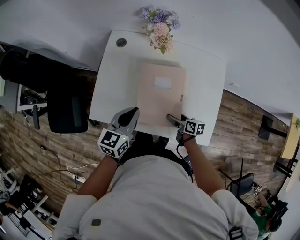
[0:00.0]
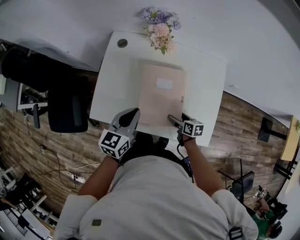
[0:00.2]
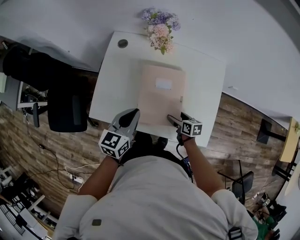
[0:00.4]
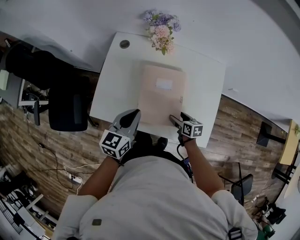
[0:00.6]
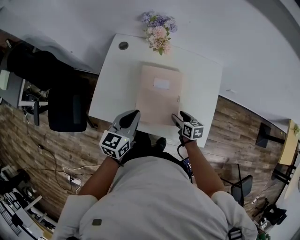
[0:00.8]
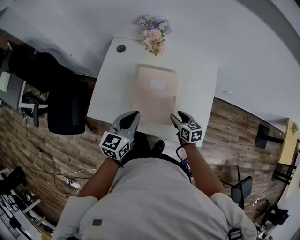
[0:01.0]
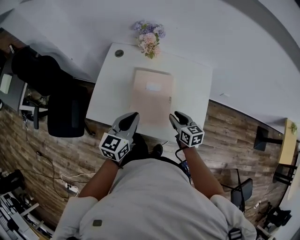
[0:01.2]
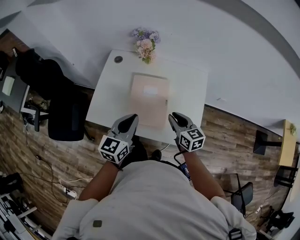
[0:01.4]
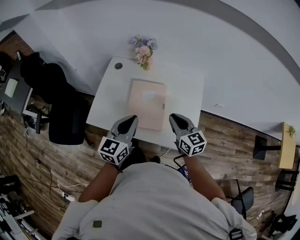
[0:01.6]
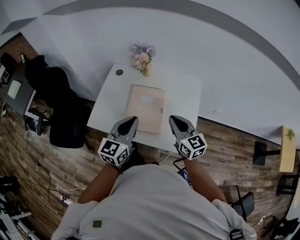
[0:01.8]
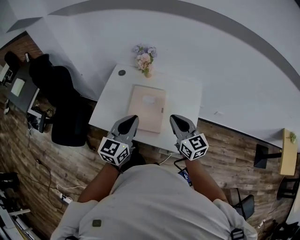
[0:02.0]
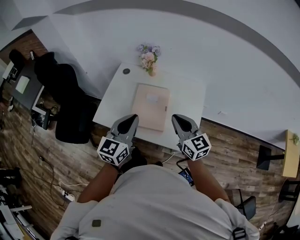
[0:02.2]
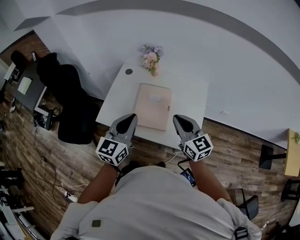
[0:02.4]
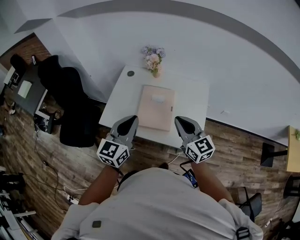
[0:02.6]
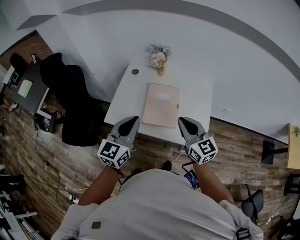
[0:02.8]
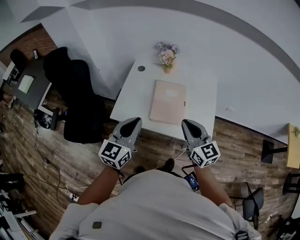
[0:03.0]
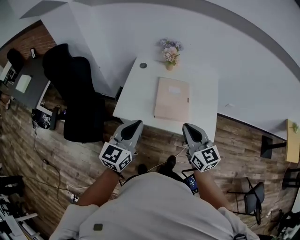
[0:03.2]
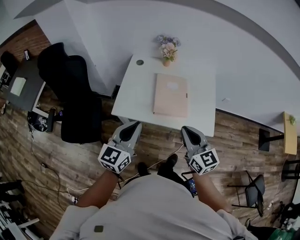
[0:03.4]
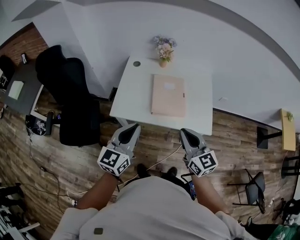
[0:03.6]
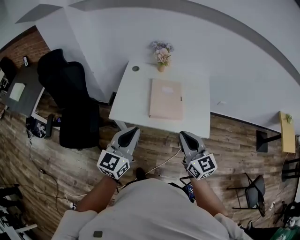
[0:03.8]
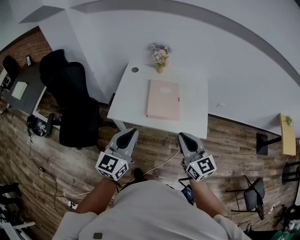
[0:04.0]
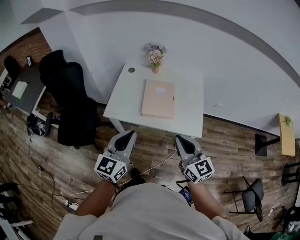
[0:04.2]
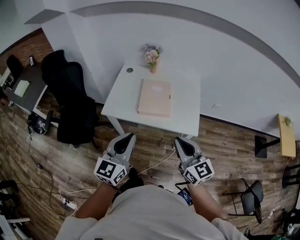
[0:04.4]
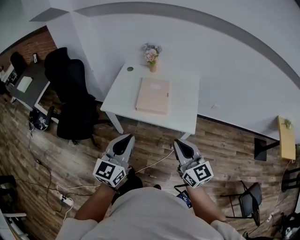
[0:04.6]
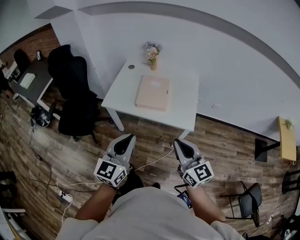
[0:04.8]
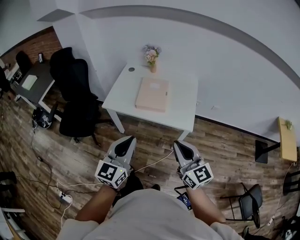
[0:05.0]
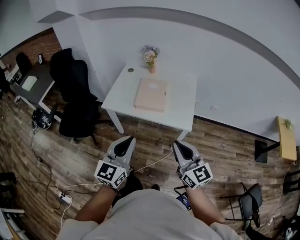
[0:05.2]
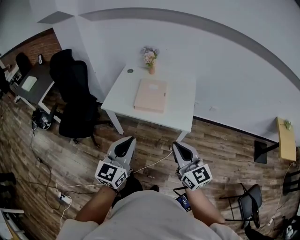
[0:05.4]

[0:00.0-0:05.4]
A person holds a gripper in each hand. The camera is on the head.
0:00.0 to 0:01.4: The left gripper heads upward, backward and to the right, covering approximately 15 cm. Meanwhile the right gripper shifts roughly 20 cm upward, turns by approximately 40 degrees, and closes.
0:01.4 to 0:02.8: The left gripper shifts approximately 15 cm upward, backward and to the left, while the right gripper moves upward and backward, approximately 20 cm, and rotates about 20 degrees.
0:02.8 to 0:04.0: Both grippers travel together backward and to the left, about 15 cm.
0:04.0 to 0:05.4: The two grippers go some 25 cm backward and to the right.

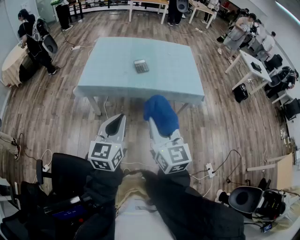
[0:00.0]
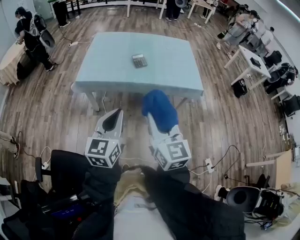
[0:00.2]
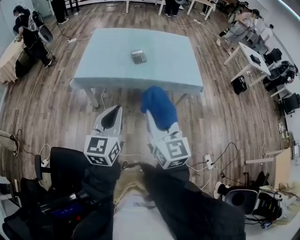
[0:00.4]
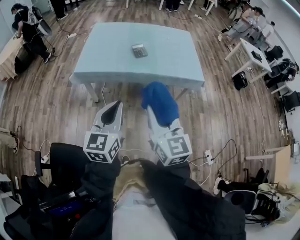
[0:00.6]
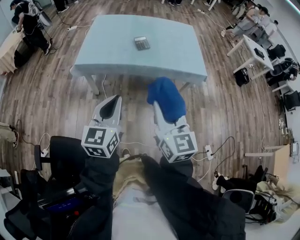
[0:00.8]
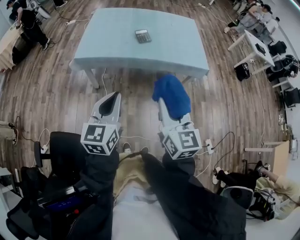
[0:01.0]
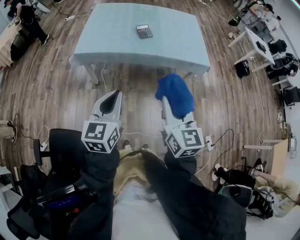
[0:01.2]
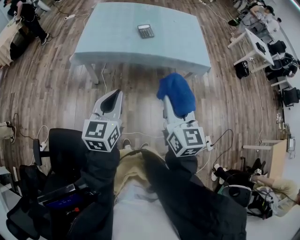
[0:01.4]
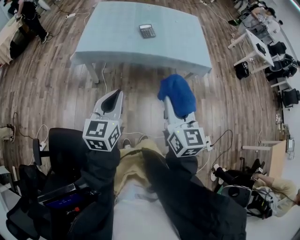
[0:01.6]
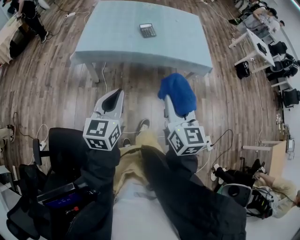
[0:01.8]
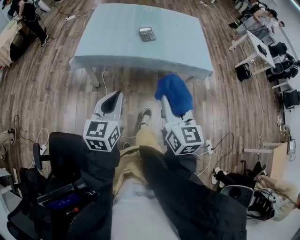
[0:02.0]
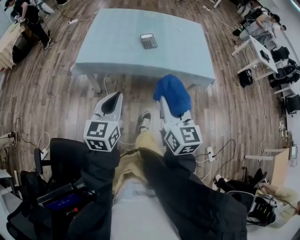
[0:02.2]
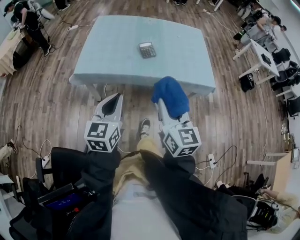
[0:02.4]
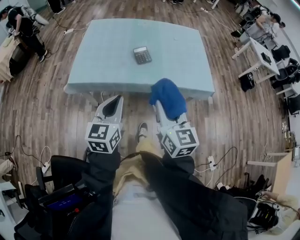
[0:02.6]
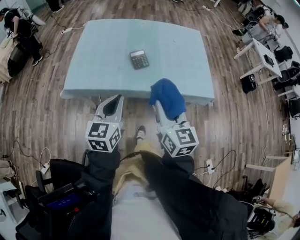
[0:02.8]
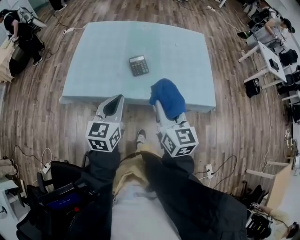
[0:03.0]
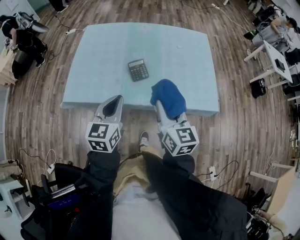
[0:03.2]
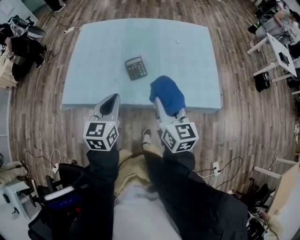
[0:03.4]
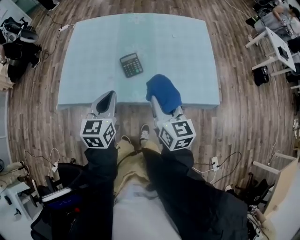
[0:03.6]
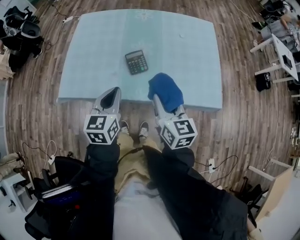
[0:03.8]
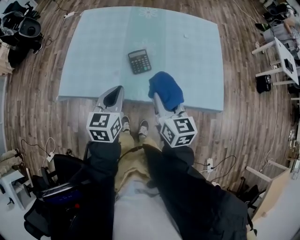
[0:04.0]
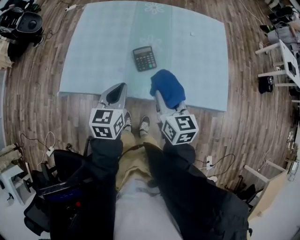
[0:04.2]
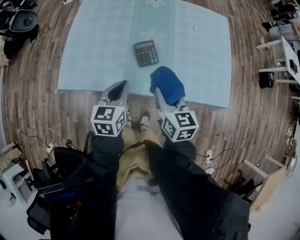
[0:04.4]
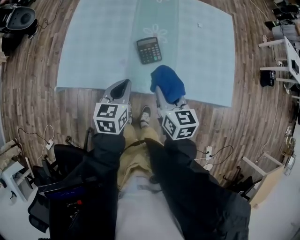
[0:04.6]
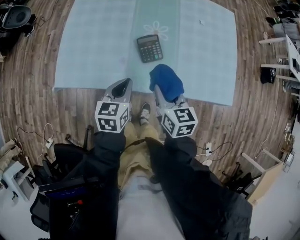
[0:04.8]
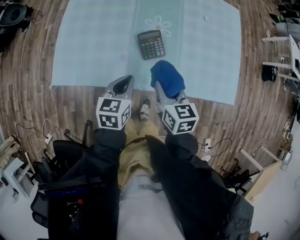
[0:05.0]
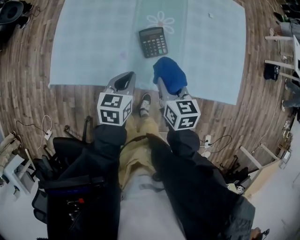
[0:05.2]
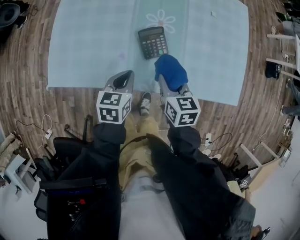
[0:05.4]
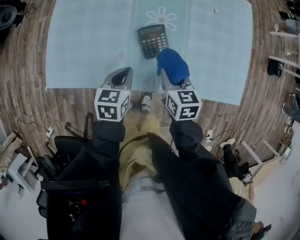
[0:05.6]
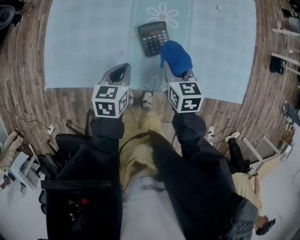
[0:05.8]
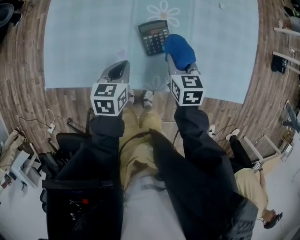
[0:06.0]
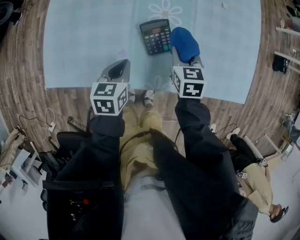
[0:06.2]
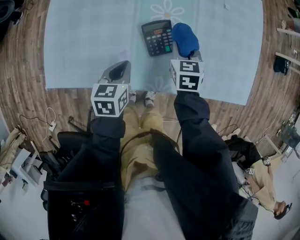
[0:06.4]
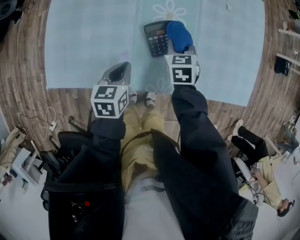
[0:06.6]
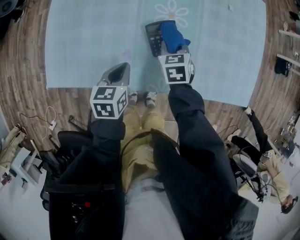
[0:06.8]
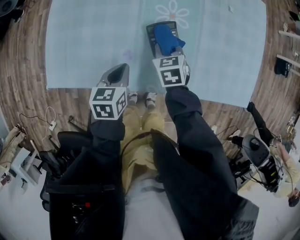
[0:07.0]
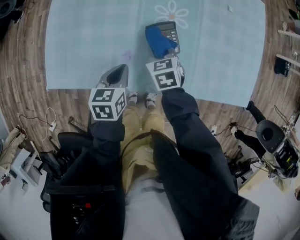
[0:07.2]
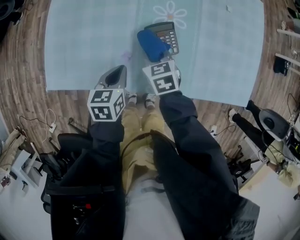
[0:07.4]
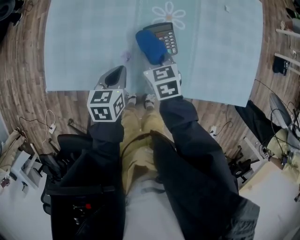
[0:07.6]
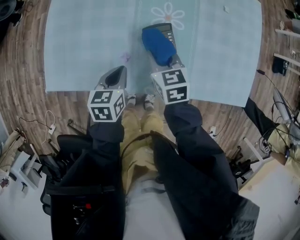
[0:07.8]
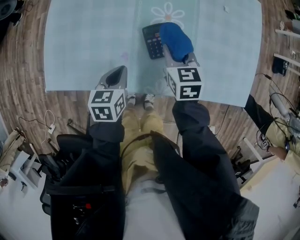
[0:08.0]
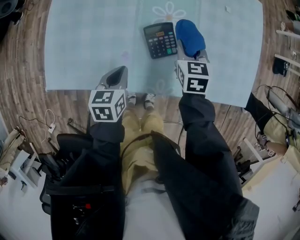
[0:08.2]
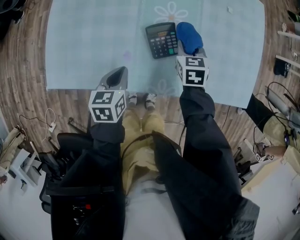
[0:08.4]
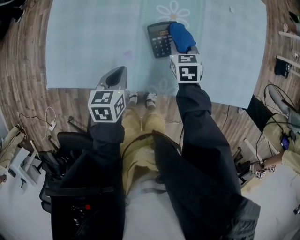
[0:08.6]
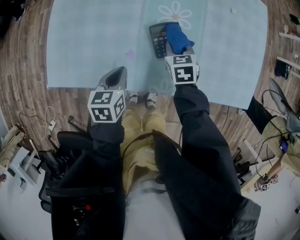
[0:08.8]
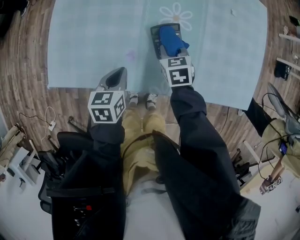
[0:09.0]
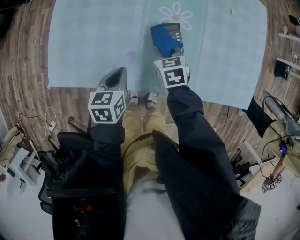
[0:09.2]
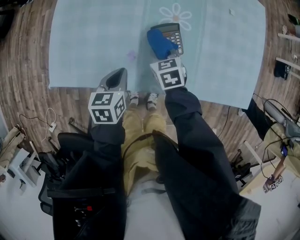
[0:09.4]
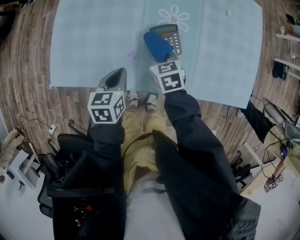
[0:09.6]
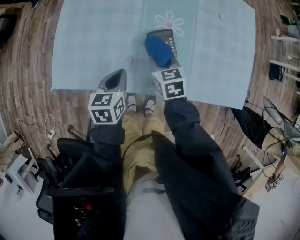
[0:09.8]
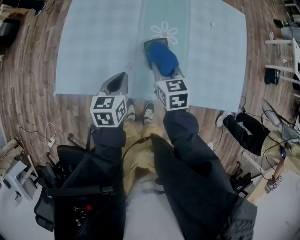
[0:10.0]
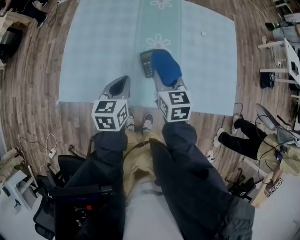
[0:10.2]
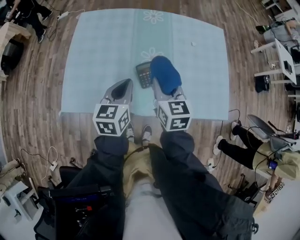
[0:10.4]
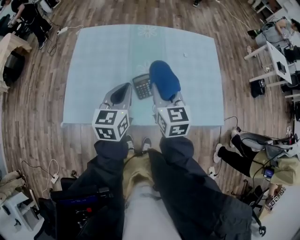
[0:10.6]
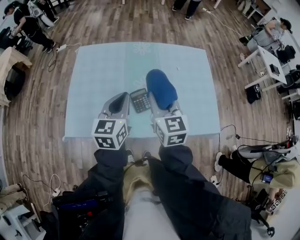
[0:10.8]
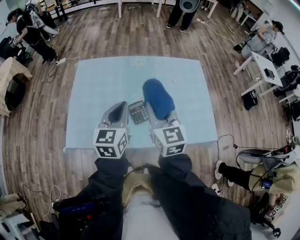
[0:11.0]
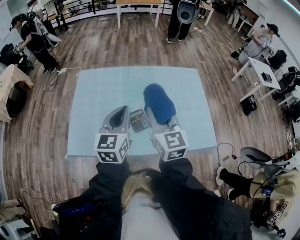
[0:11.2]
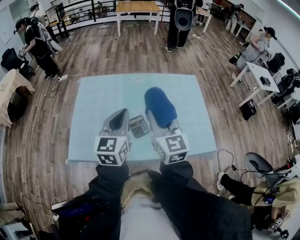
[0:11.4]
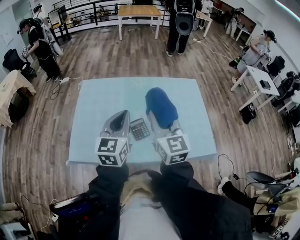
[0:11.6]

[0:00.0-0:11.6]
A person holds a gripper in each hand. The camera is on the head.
0:00.0 to 0:01.4: The left gripper moves to the left, approximately 5 cm.
0:01.4 to 0:02.8: The two grippers go some 30 cm forward.
0:02.8 to 0:04.4: Both grippers travel together forward and downward, approximately 25 cm.
0:04.4 to 0:05.8: The grippers both shift downward and forward by roughly 20 cm.
0:05.8 to 0:07.2: The right gripper shifts approximately 10 cm to the left and downward.
0:07.2 to 0:08.8: The right gripper is displaced to the right by approximately 5 cm.
0:08.8 to 0:10.2: The two grippers go approximately 15 cm upward. The right gripper turns by some 20 degrees.
0:10.2 to 0:11.6: Both grippers travel together upward, roughly 25 cm. The left gripper changes its angle by approximately 30 degrees; the right gripper tilts its fingers roughly 30 degrees upward.

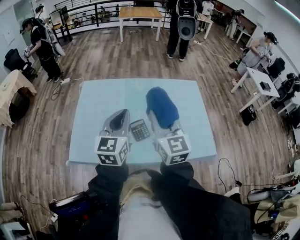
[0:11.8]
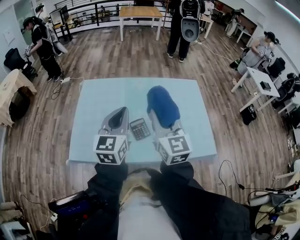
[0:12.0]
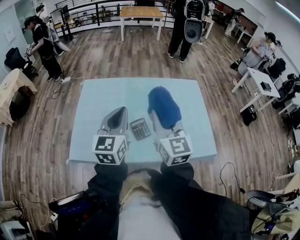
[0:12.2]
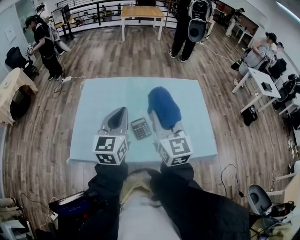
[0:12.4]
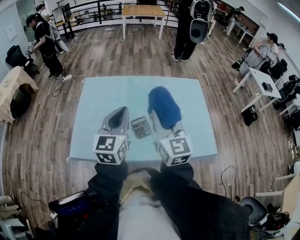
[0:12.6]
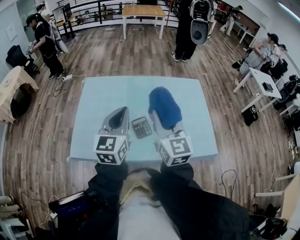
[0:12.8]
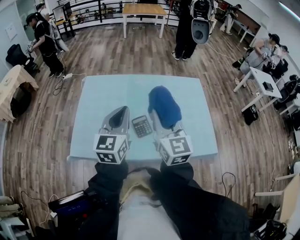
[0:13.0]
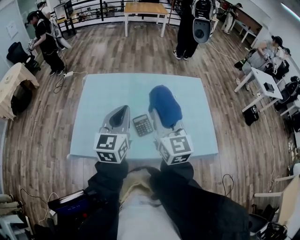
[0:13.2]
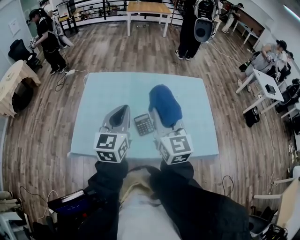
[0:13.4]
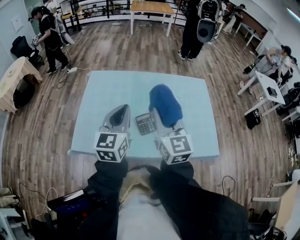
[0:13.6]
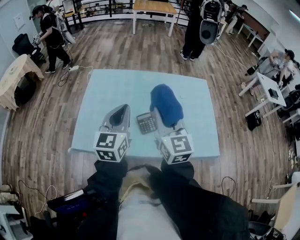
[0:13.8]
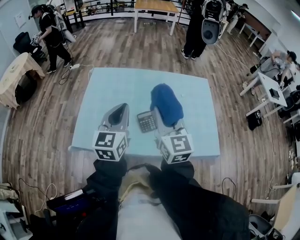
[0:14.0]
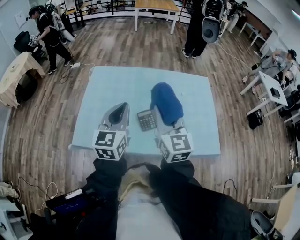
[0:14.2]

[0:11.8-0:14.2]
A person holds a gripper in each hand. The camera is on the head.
0:11.8 to 0:13.0: Both grippers stay about where they are.
0:13.0 to 0:14.2: The grippers make only small movements.

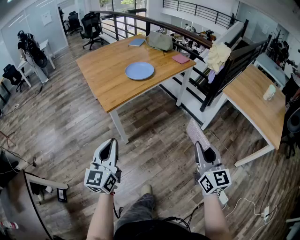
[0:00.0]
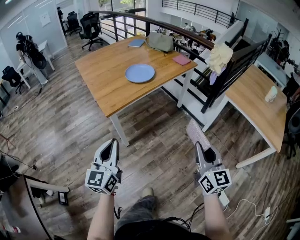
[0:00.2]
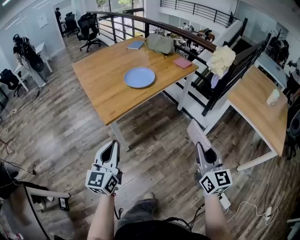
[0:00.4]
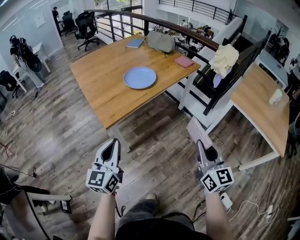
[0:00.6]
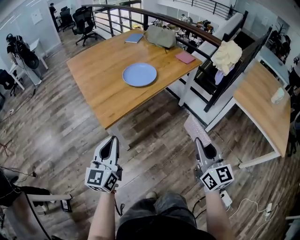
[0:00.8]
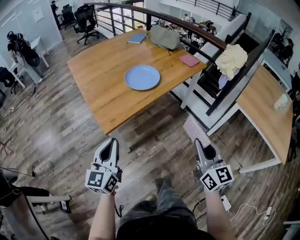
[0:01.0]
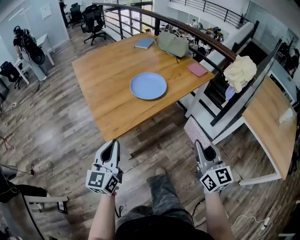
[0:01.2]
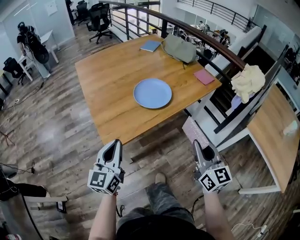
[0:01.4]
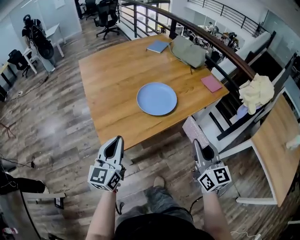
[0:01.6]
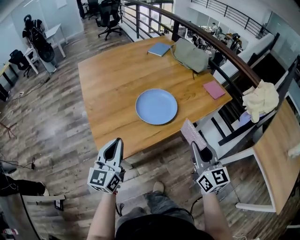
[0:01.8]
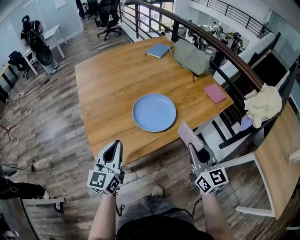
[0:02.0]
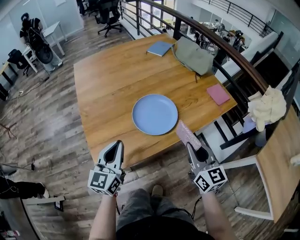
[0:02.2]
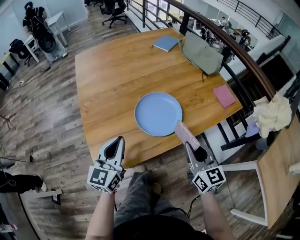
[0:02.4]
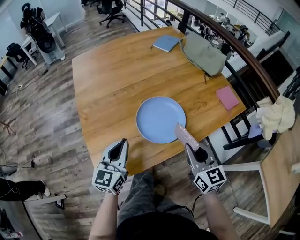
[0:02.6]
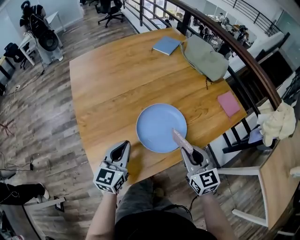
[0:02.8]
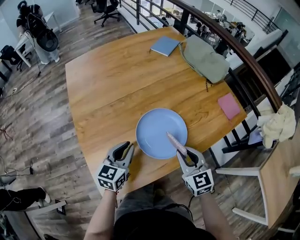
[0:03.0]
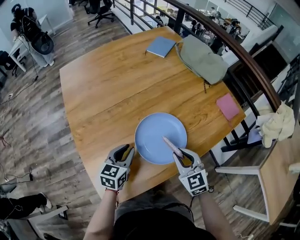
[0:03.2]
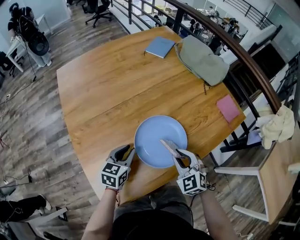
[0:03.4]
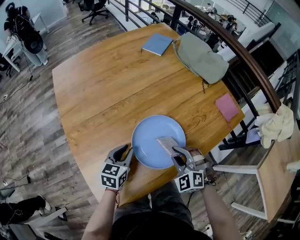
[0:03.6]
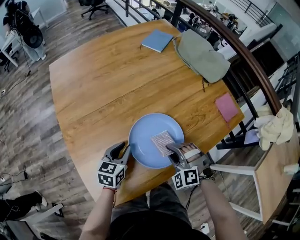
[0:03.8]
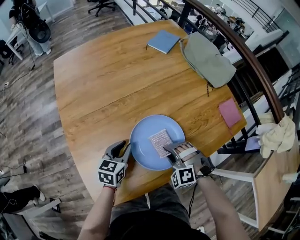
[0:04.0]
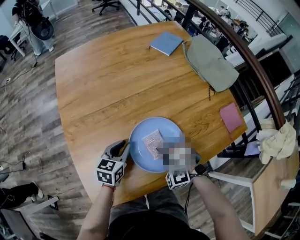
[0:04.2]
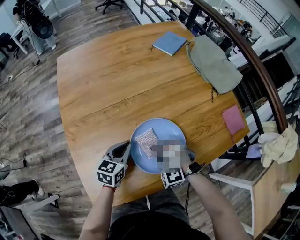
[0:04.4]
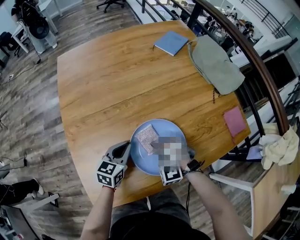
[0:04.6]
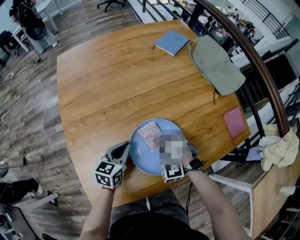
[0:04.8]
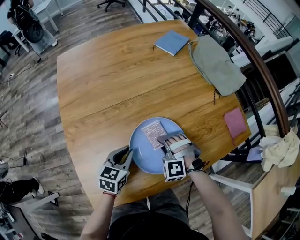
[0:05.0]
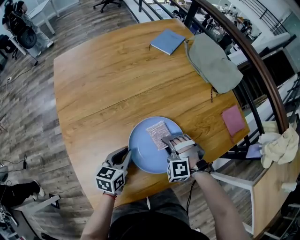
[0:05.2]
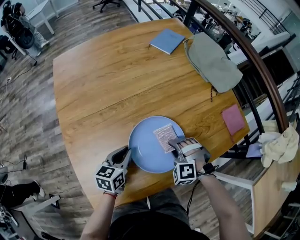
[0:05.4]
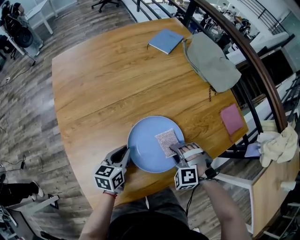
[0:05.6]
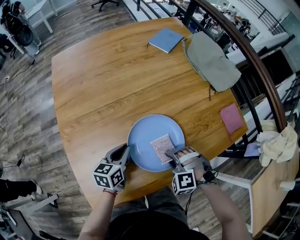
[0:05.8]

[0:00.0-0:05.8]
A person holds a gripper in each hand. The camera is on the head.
0:00.0 to 0:01.4: Both grippers move forward, some 30 cm.
0:01.4 to 0:02.8: The two grippers go about 25 cm forward. The right gripper changes its angle by about 20 degrees.
0:02.8 to 0:04.4: The left gripper is displaced downward and forward by about 15 cm, and turns by approximately 20 degrees; the right gripper travels downward, to the left and forward by roughly 20 cm, and twists approximately 80 degrees counterclockwise, seen from behind.
0:04.4 to 0:05.8: The right gripper shifts roughly 10 cm to the right.
